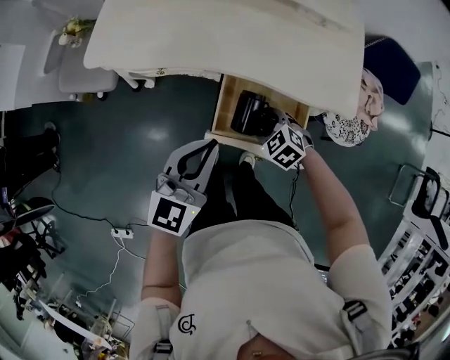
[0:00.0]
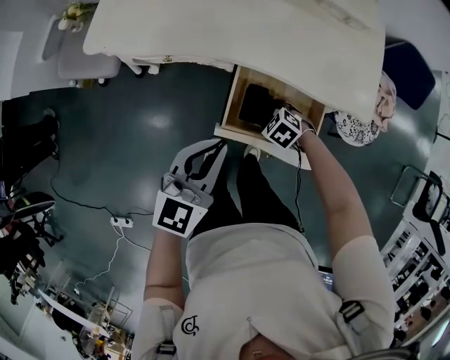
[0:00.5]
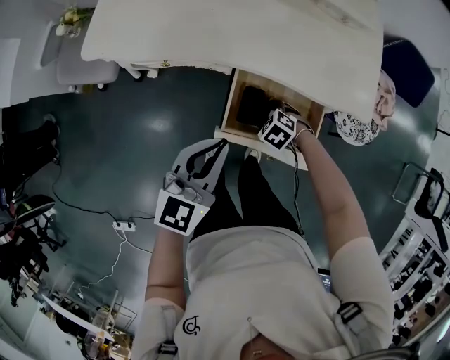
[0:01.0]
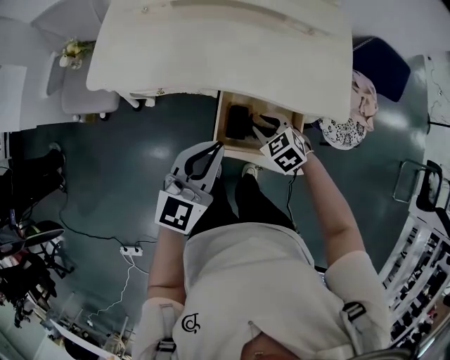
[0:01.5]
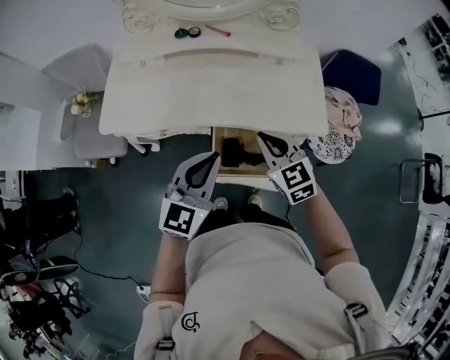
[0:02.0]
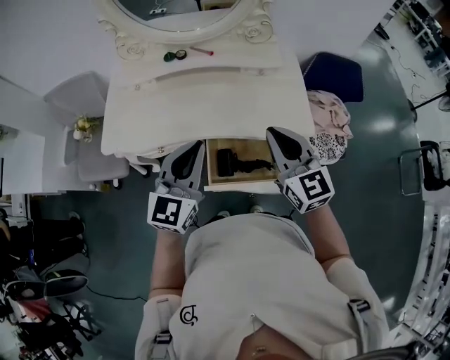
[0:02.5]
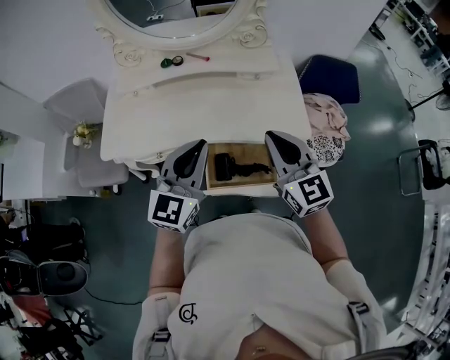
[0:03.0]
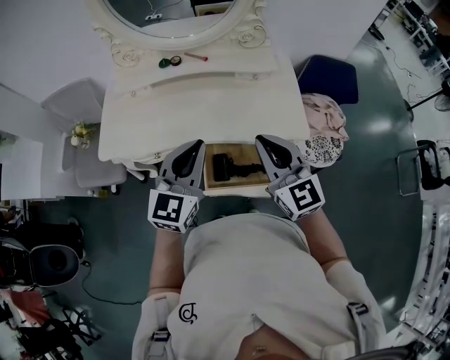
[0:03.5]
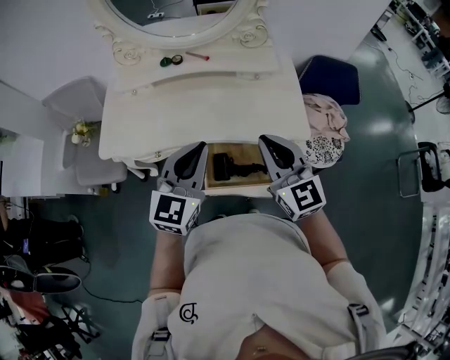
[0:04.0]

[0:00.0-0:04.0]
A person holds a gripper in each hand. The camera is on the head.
0:00.0 to 0:02.0: The left gripper travels upward by approximately 10 cm. Meanwhile the right gripper travels upward by some 25 cm, points its fingers about 30 degrees further upward, and closes up.
0:02.0 to 0:04.0: The right gripper heads upward, covering some 15 cm, and changes its angle by about 20 degrees. Meanwhile the left gripper travels upward by about 5 cm.

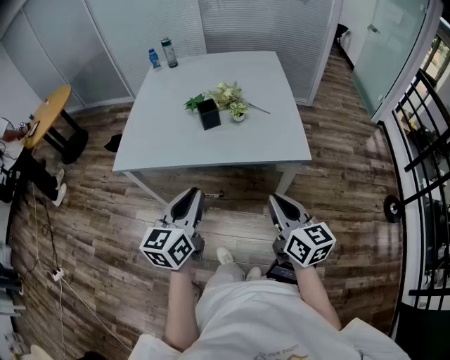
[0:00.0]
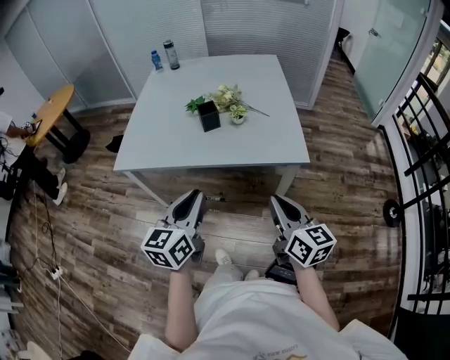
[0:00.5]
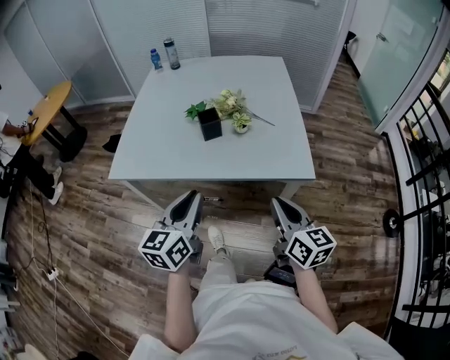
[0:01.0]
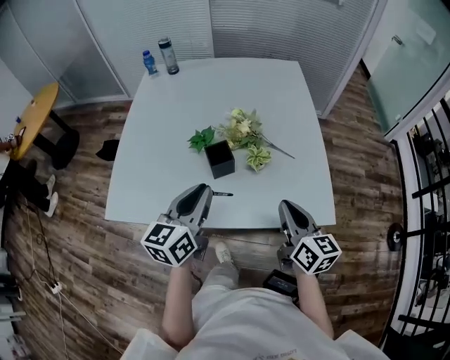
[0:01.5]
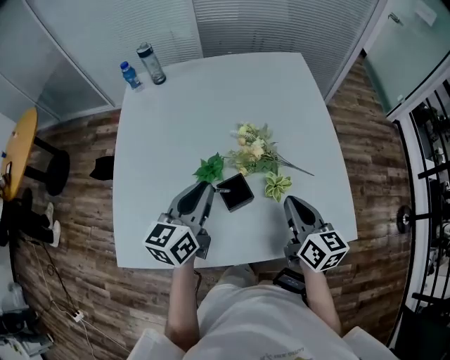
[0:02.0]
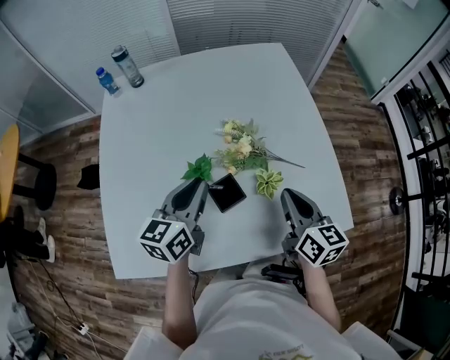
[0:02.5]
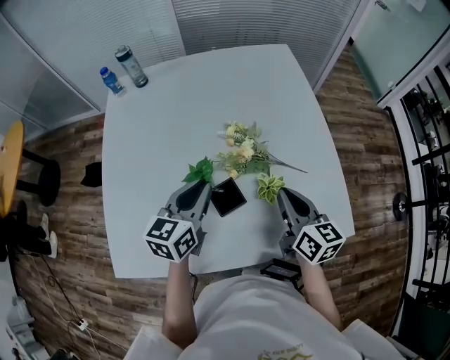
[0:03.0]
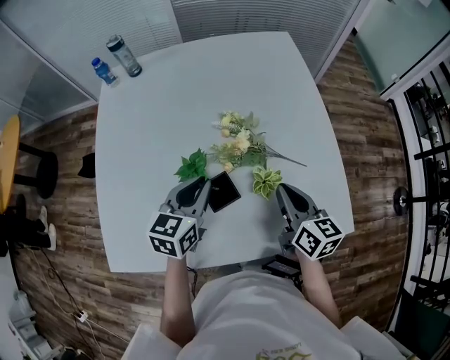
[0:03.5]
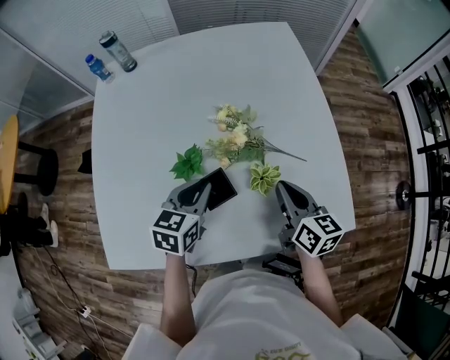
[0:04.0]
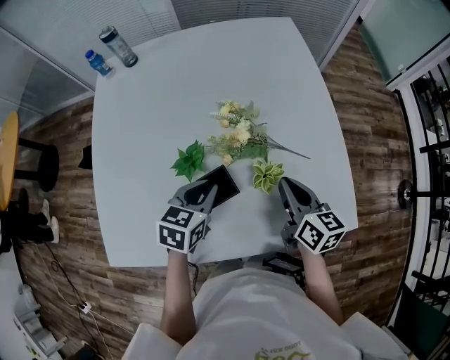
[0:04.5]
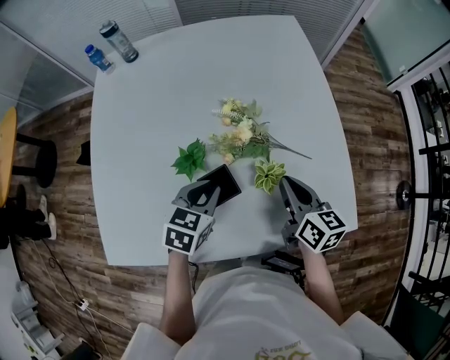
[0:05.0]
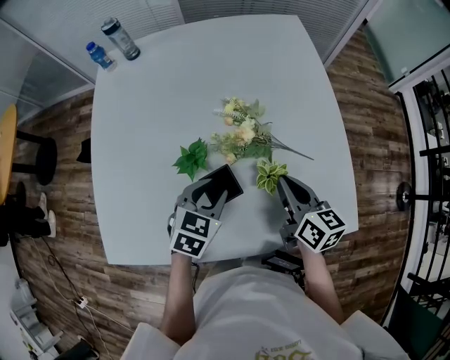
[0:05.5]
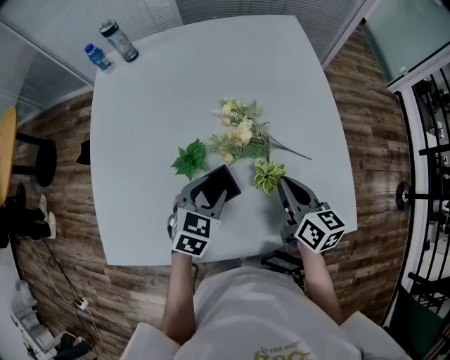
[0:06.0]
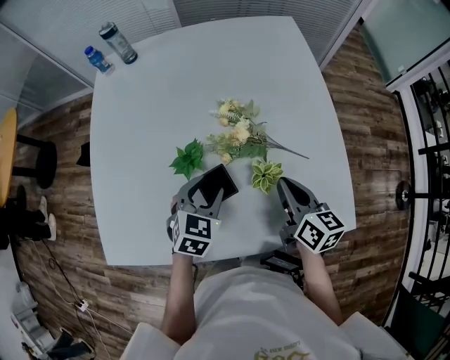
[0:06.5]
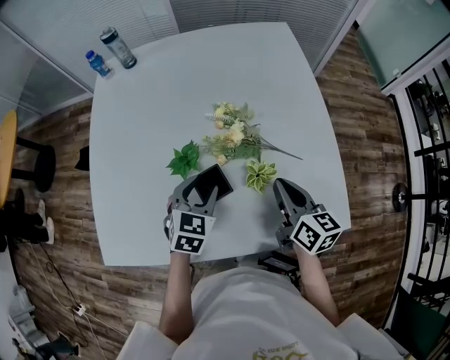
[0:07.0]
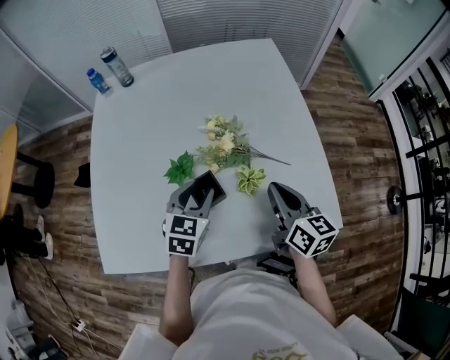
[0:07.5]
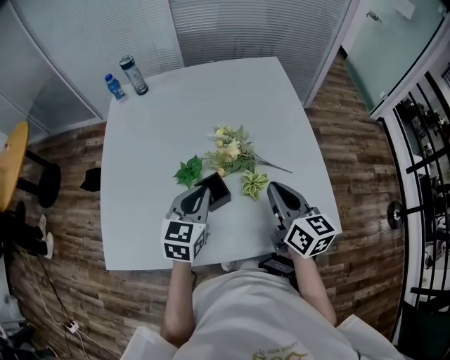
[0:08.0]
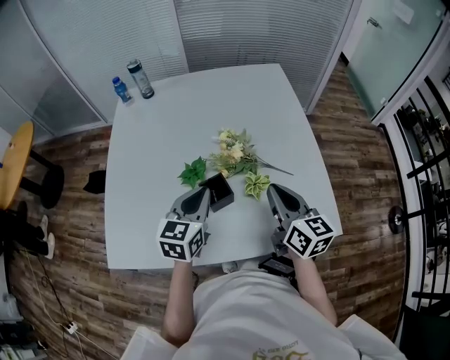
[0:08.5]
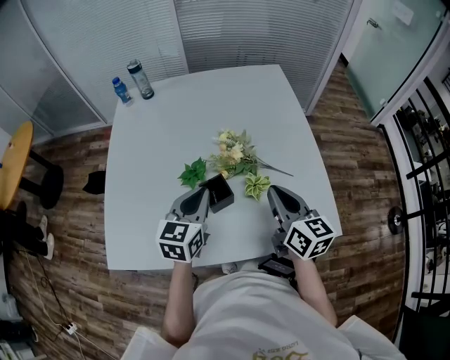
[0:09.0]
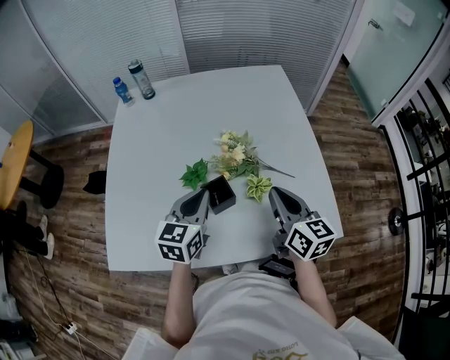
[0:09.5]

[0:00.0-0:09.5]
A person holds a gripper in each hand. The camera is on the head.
0:00.0 to 0:02.0: Both grippers are carried forward, approximately 50 cm.
0:02.0 to 0:04.0: The left gripper goes approximately 10 cm downward, and changes its angle by approximately 30 degrees; the right gripper heads downward, covering roughly 5 cm.
0:04.0 to 0:05.5: The grippers stay close to where they were, moving slightly.
0:05.5 to 0:07.5: The right gripper is displaced upward by about 5 cm.
0:07.5 to 0:09.5: The left gripper shifts approximately 5 cm upward, and closes; the right gripper shifts by about 5 cm.

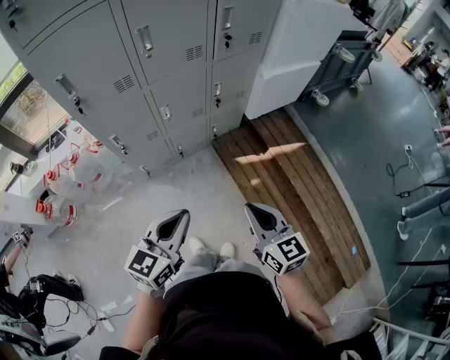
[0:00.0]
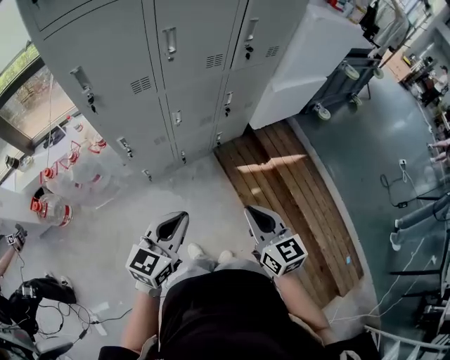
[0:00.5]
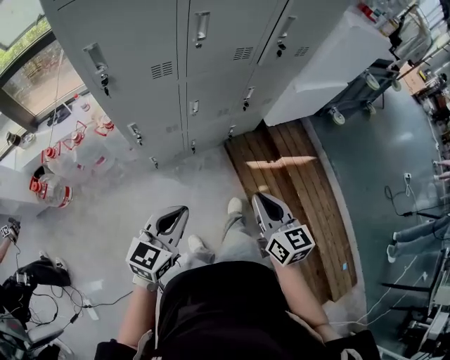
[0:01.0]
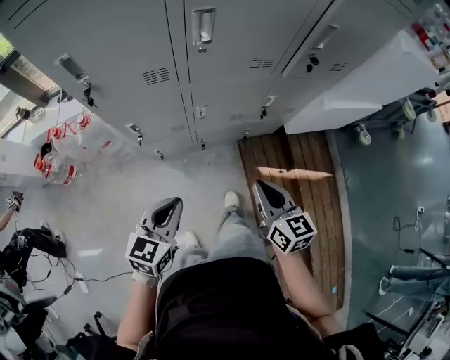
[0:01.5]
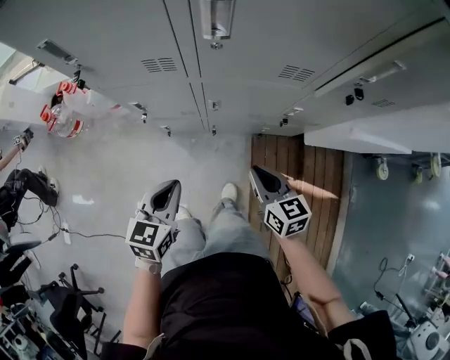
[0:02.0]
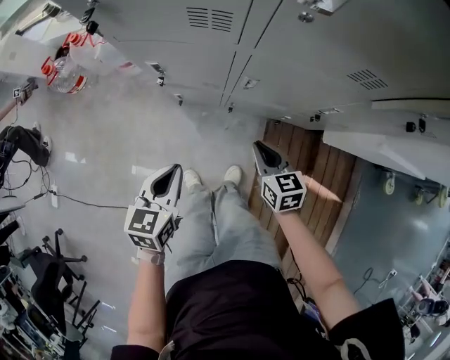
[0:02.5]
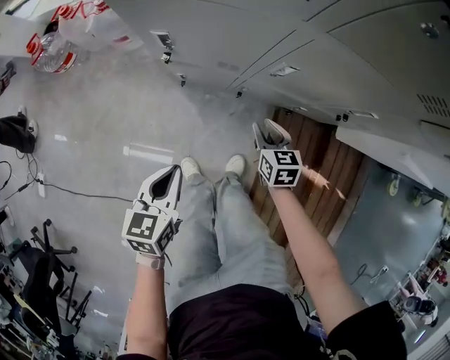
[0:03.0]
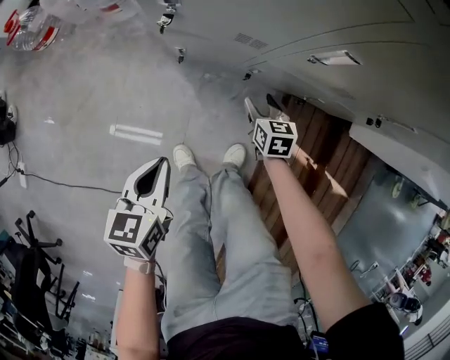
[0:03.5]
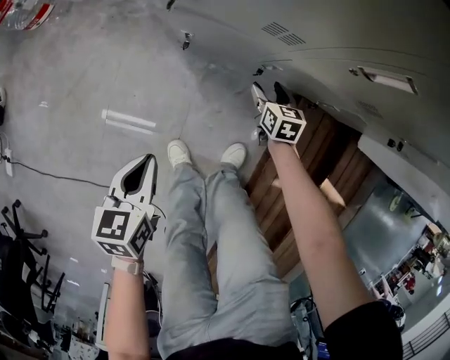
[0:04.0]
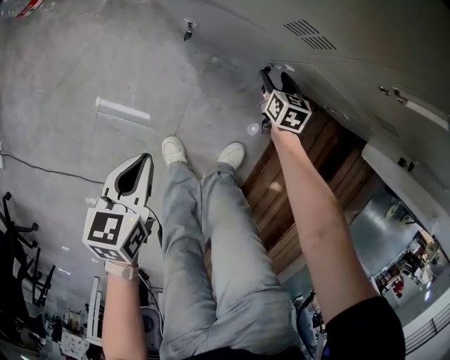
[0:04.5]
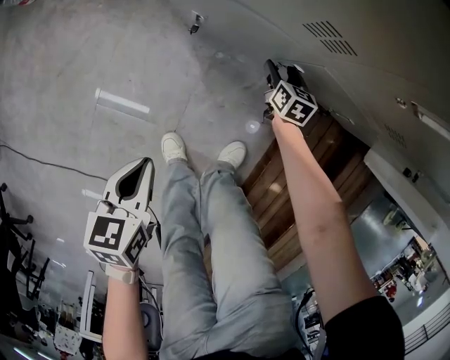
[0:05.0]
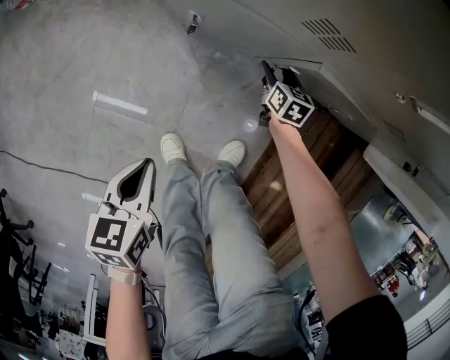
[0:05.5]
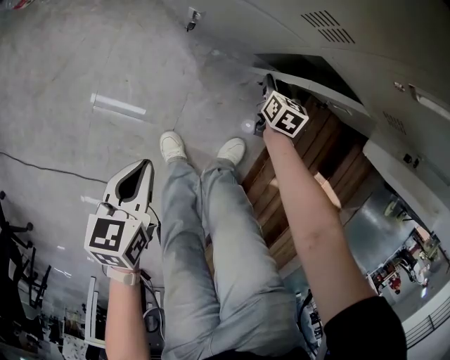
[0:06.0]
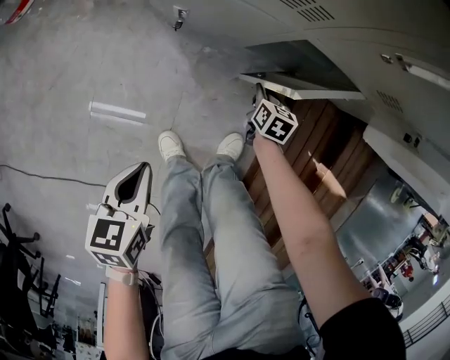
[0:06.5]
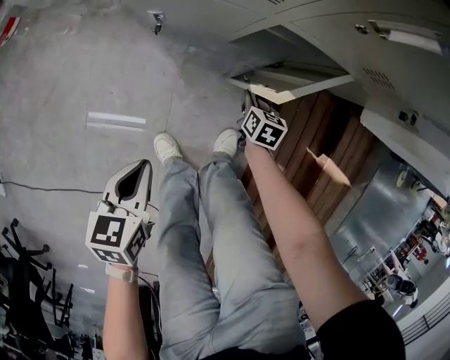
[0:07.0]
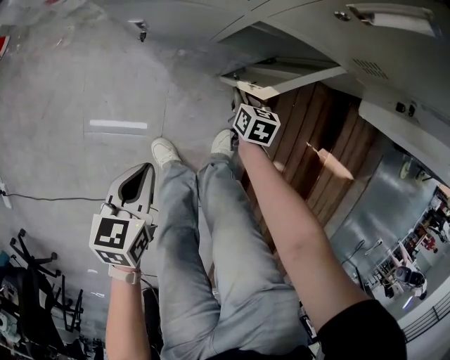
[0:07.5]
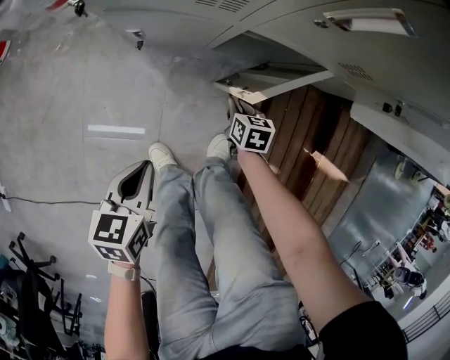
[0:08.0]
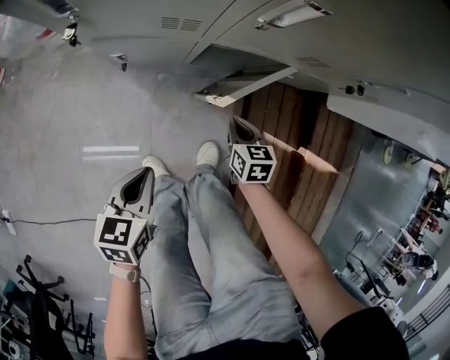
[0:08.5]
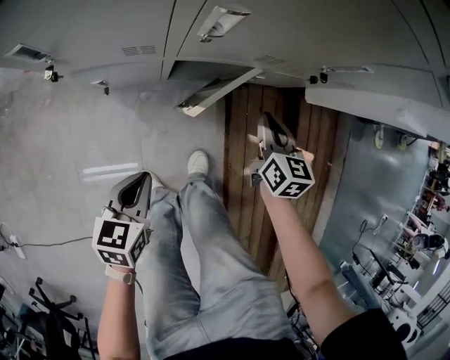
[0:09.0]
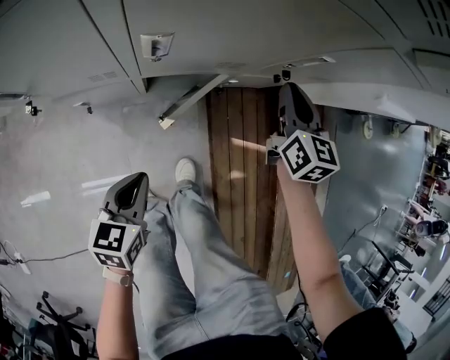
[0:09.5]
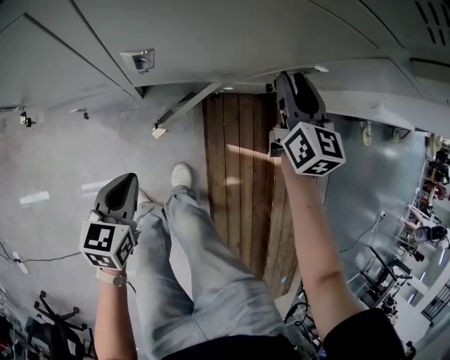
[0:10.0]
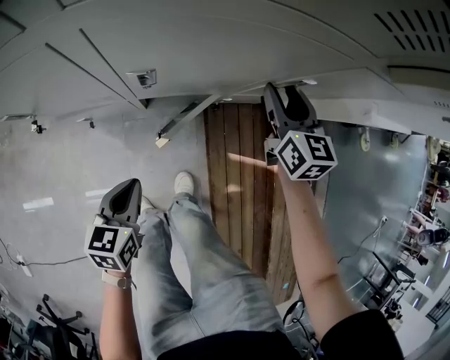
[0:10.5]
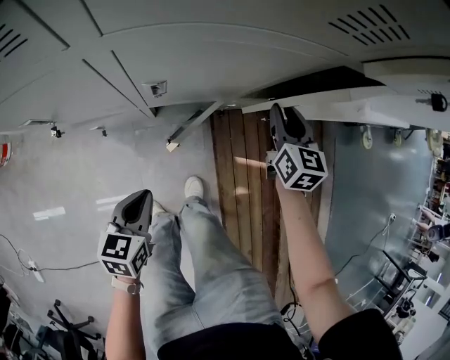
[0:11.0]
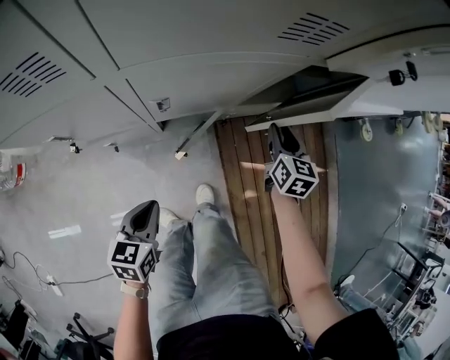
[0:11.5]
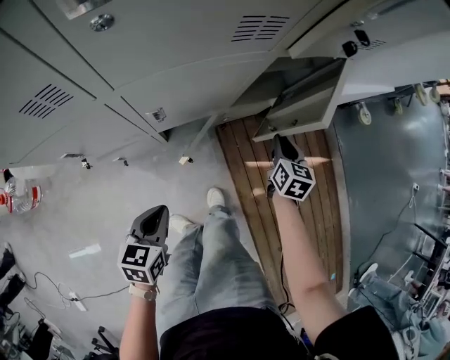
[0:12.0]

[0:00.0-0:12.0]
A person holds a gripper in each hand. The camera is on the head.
0:00.0 to 0:02.0: The right gripper changes place by roughly 40 cm, and swivels some 30 degrees, while the left gripper shifts by roughly 30 cm, and rotates approximately 40 degrees.
0:02.0 to 0:04.0: The left gripper heads downward and to the left, covering some 40 cm, and turns by some 30 degrees, while the right gripper shifts approximately 50 cm downward, swivels approximately 20 degrees, and opens its fingers.
0:04.0 to 0:06.0: Both grippers move downward, roughly 5 cm. The right gripper closes.
0:06.0 to 0:08.0: The right gripper moves backward and to the right, roughly 10 cm, while the left gripper shifts approximately 5 cm to the right.
0:08.0 to 0:10.0: The right gripper heads upward, forward and to the right, covering roughly 50 cm, points its fingers about 40 degrees further upward, and closes, then opens again. Meanwhile the left gripper moves forward, upward and to the right, approximately 20 cm.
0:10.0 to 0:12.0: The right gripper heads backward and to the right, covering roughly 15 cm, and swivels some 30 degrees. The left gripper heads upward, covering roughly 15 cm.

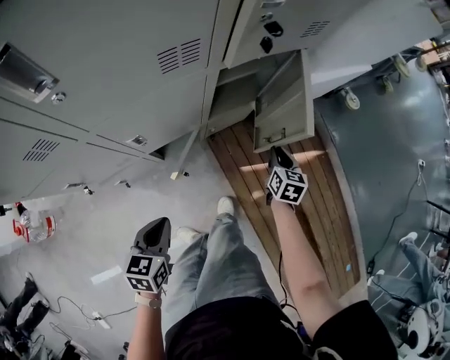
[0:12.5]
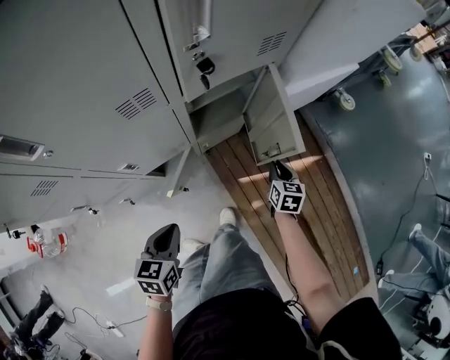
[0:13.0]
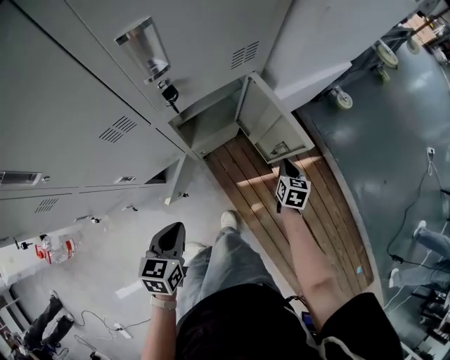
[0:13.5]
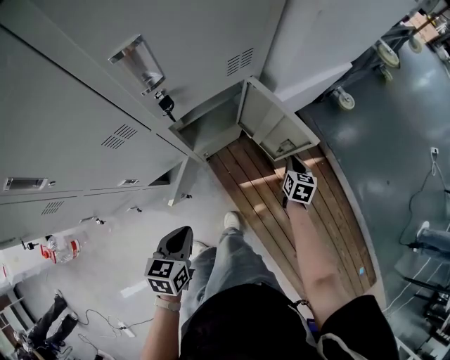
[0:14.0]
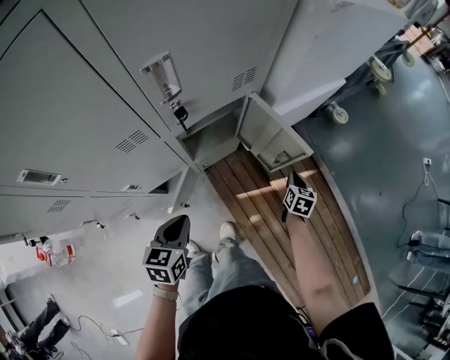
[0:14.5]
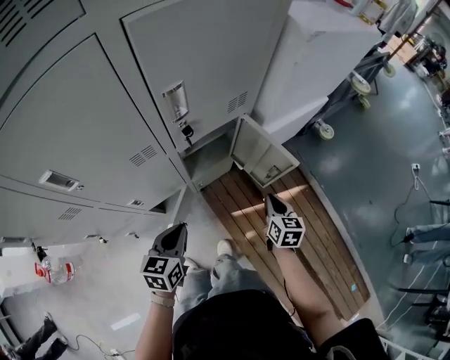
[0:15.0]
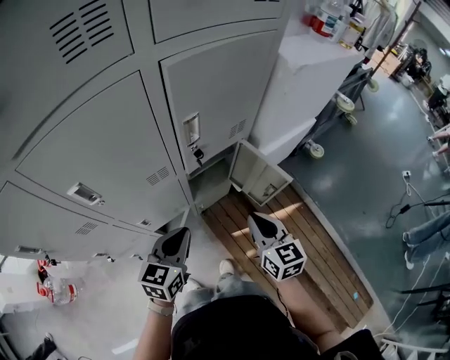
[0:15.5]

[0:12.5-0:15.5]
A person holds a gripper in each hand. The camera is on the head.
0:12.5 to 0:14.0: The right gripper goes roughly 20 cm to the right and forward. Meanwhile the left gripper travels to the right, forward and upward by roughly 15 cm.
0:14.0 to 0:15.5: The right gripper is displaced upward, to the left and backward by some 40 cm, and rotates roughly 30 degrees, while the left gripper moves upward, some 20 cm, and swivels about 30 degrees.
